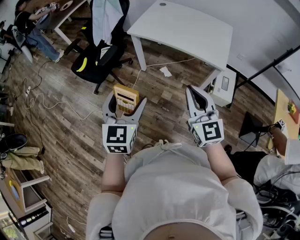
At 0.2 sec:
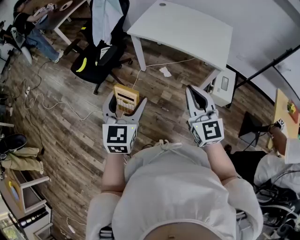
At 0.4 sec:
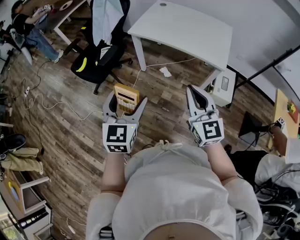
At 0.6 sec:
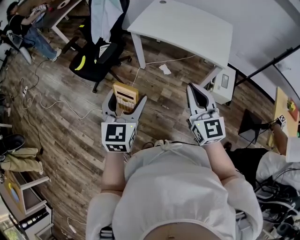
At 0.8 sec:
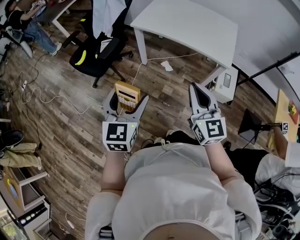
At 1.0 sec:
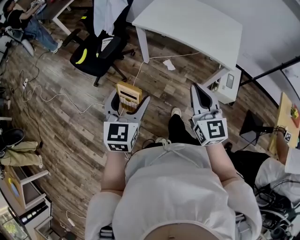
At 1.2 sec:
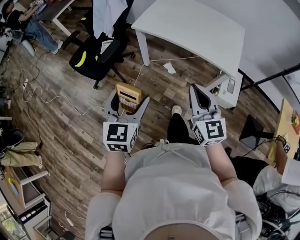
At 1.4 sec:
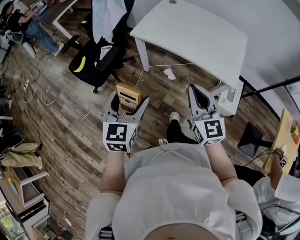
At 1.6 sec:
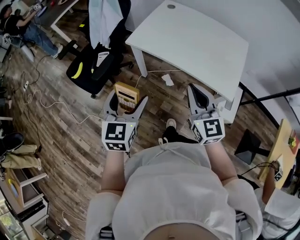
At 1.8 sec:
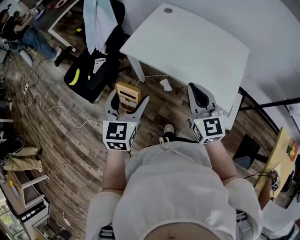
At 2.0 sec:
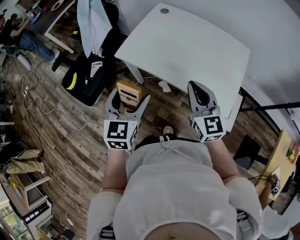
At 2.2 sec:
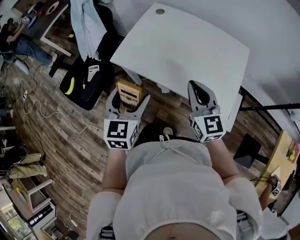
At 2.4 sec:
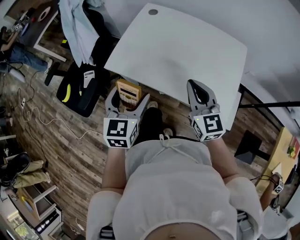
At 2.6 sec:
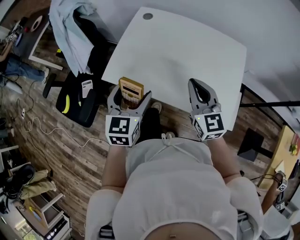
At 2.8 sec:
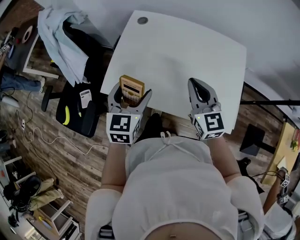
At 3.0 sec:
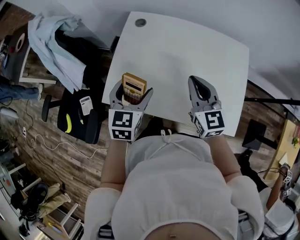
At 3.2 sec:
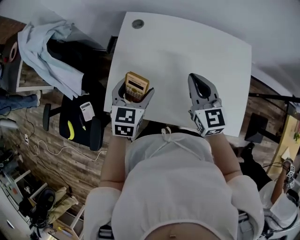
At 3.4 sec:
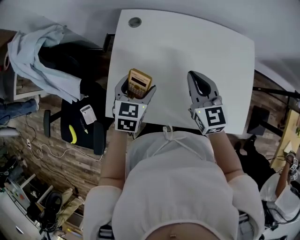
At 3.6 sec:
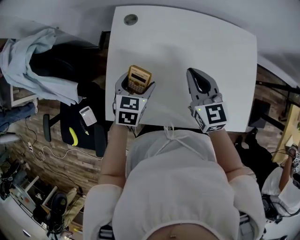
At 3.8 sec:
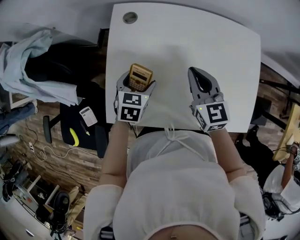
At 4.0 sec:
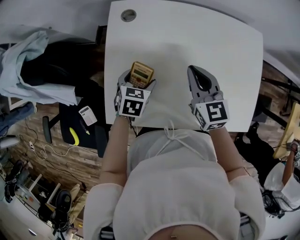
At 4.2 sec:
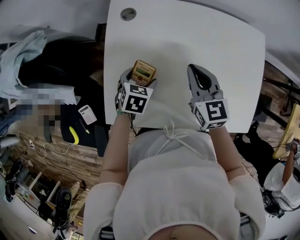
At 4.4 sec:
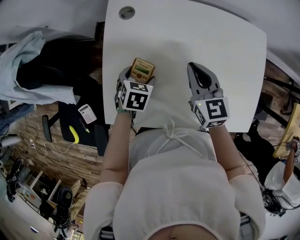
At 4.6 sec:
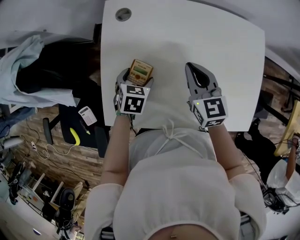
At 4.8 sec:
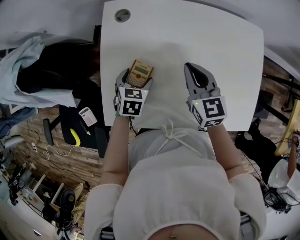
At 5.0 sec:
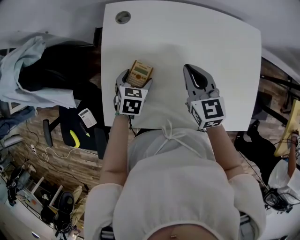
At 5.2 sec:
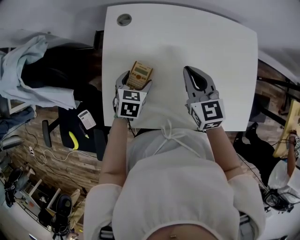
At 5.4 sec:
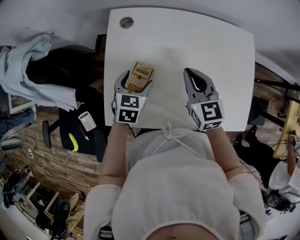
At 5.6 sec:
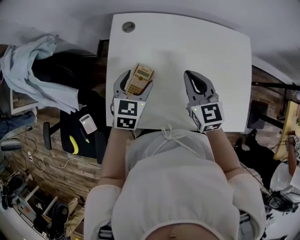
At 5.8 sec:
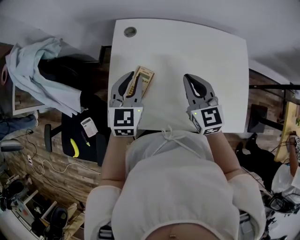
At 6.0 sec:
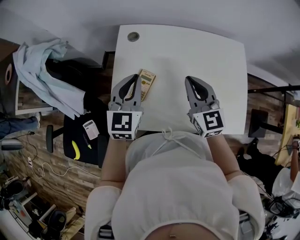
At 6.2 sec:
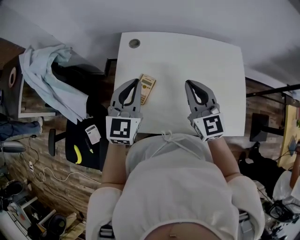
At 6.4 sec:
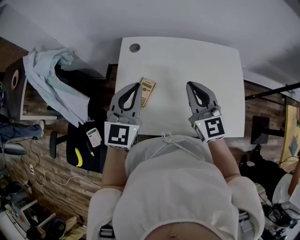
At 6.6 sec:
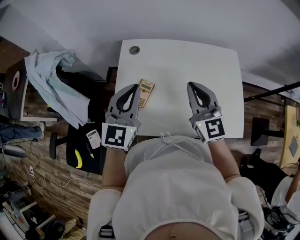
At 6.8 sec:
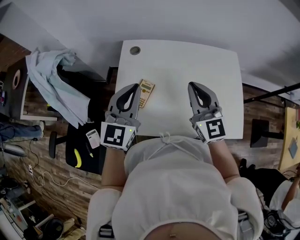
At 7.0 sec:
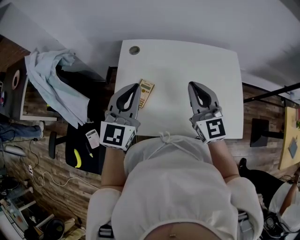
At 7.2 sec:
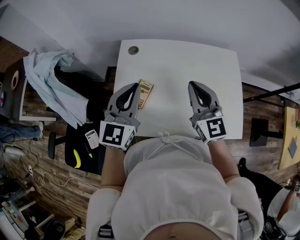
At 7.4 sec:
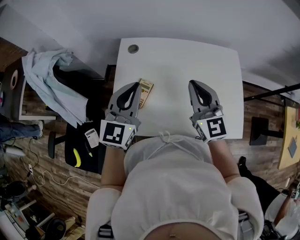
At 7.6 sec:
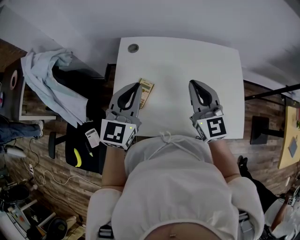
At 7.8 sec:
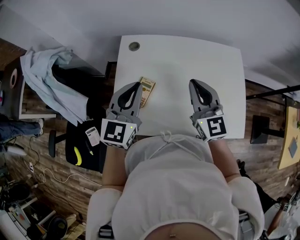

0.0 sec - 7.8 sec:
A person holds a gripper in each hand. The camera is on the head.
0.0 sec - 1.6 sec: Both grippers travel together forward, some 25 cm.
1.6 sec - 3.2 sec: Both grippers are carried forward, about 50 cm. The right gripper swivels approximately 20 degrees, while the left gripper changes its angle by approximately 30 degrees.
3.2 sec - 4.6 sec: Both grippers move downward and forward, some 15 cm. The left gripper swivels some 30 degrees.
4.6 sec - 6.2 sec: The right gripper moves upward and backward, roughly 15 cm, and changes its angle by about 20 degrees. Meanwhile the left gripper goes approximately 30 cm upward, tips its fingers upward by about 50 degrees, and closes its fingers.
6.2 sec - 7.8 sec: The grippers stay close to where they were, moving slightly.

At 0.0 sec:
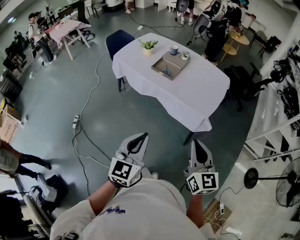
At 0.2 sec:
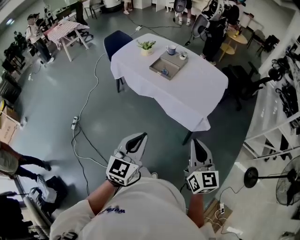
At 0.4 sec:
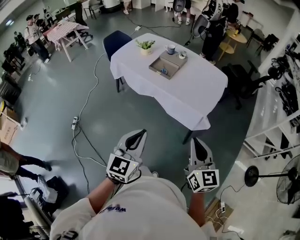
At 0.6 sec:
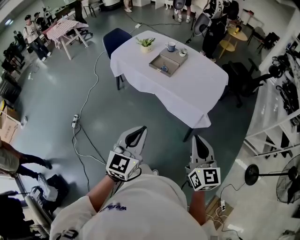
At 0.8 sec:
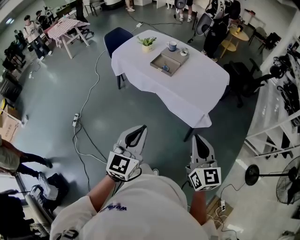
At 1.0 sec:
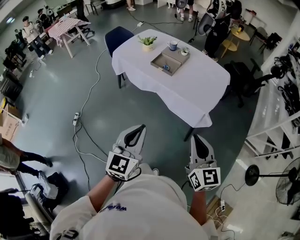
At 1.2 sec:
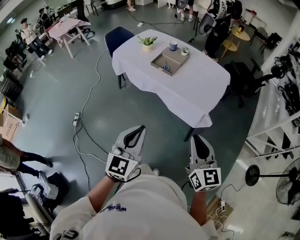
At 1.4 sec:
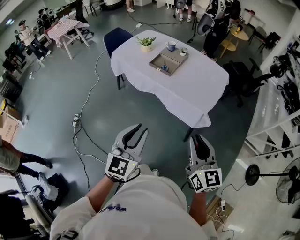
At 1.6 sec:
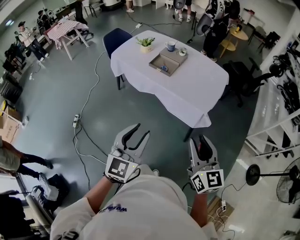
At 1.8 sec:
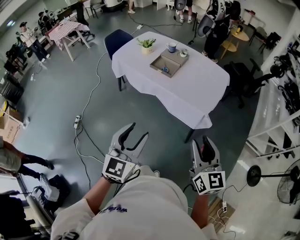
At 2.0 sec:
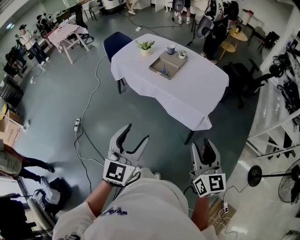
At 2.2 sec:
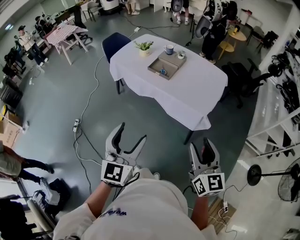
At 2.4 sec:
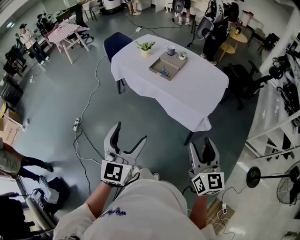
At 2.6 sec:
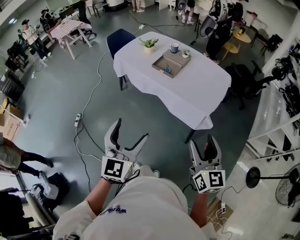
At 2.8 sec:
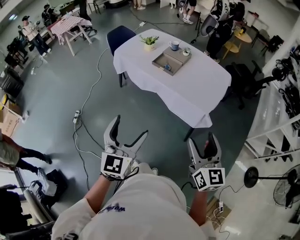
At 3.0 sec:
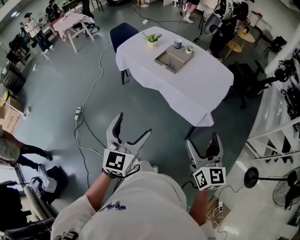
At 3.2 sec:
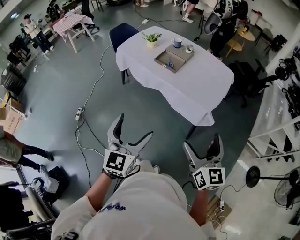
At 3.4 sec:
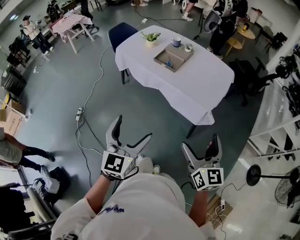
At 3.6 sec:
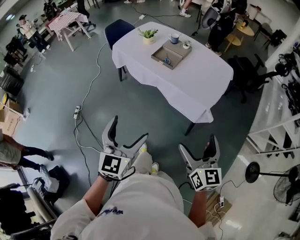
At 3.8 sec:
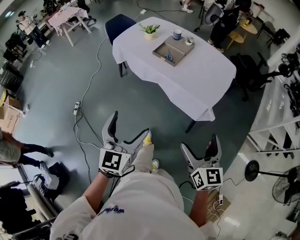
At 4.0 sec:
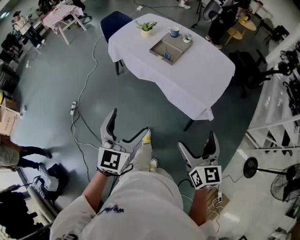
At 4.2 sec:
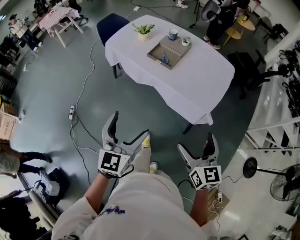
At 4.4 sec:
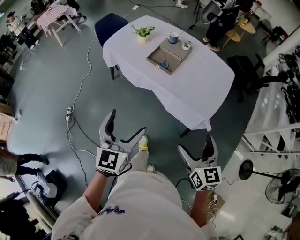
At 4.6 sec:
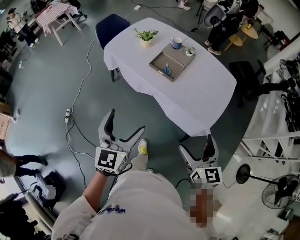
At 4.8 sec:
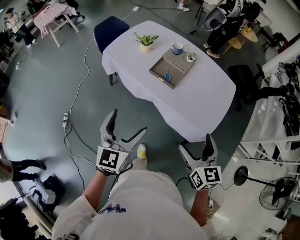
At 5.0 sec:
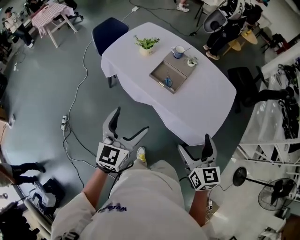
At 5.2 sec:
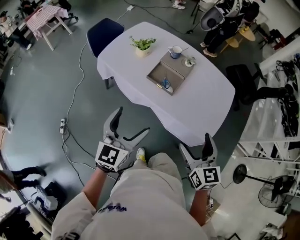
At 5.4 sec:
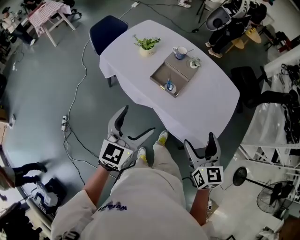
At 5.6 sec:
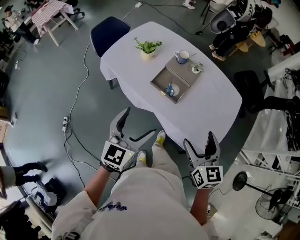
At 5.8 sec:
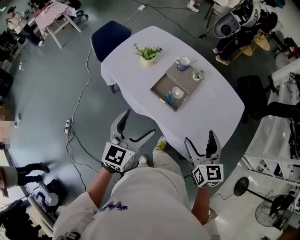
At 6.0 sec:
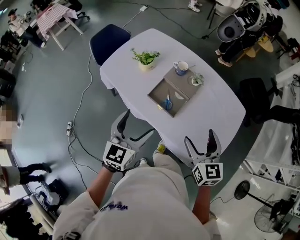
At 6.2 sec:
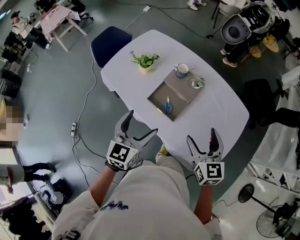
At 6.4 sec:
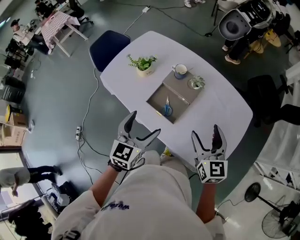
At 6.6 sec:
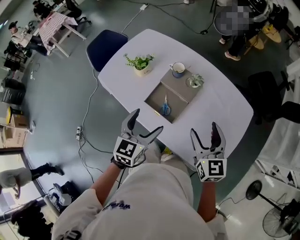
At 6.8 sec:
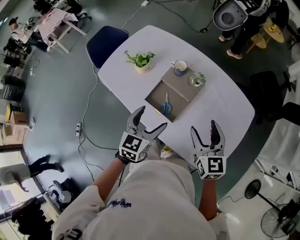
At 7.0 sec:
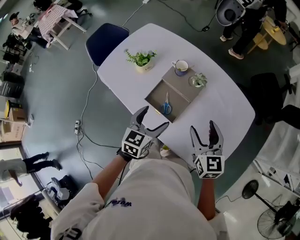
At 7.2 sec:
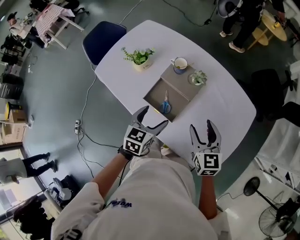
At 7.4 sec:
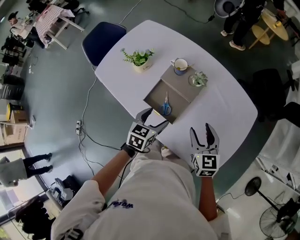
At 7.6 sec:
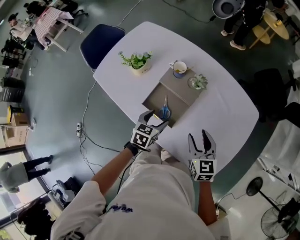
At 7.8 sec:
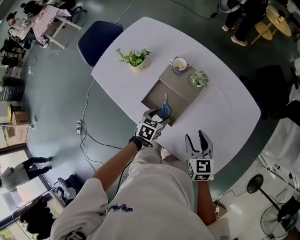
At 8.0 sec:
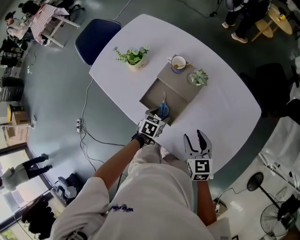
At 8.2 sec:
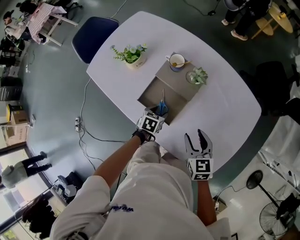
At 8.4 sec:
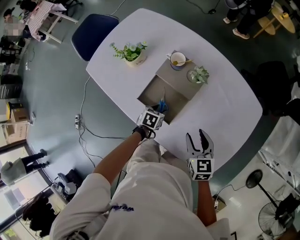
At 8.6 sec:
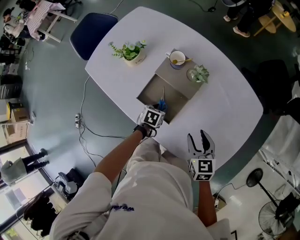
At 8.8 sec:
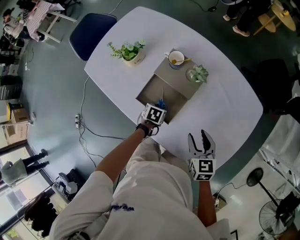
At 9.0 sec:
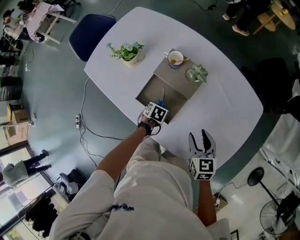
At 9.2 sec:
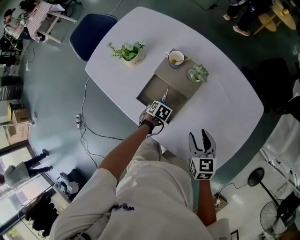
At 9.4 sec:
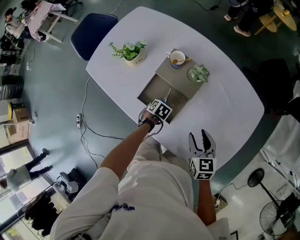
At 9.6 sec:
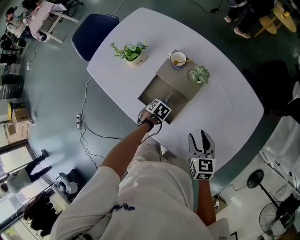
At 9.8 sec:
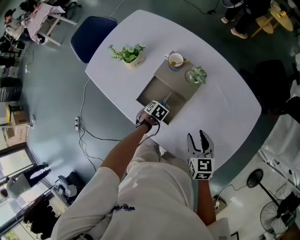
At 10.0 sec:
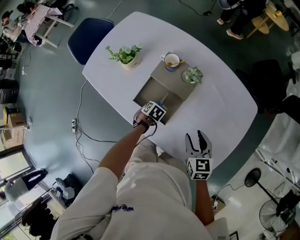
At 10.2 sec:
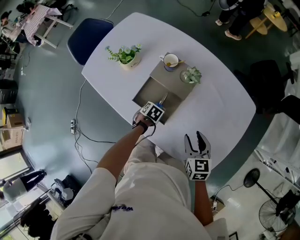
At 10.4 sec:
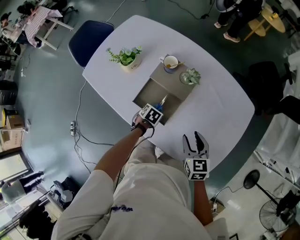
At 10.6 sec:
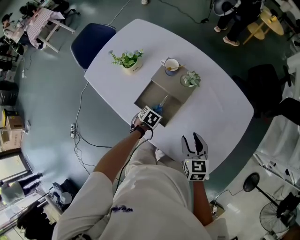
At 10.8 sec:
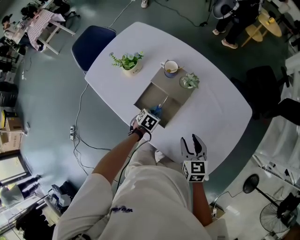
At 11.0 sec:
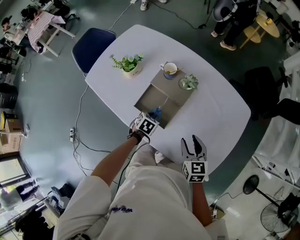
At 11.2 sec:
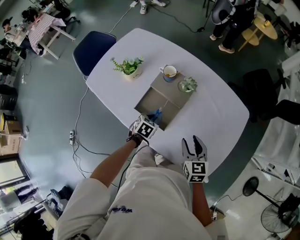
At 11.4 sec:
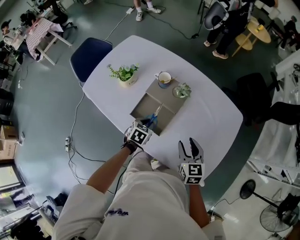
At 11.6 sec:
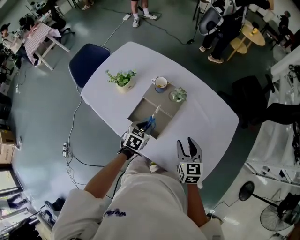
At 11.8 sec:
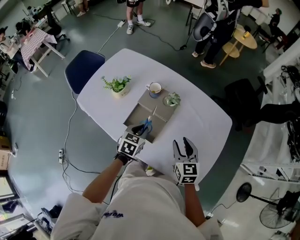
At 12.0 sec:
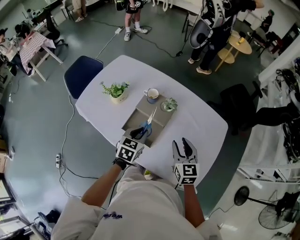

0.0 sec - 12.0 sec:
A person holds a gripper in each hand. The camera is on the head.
0.0 sec - 1.6 sec: The grippers make only small movements.
1.6 sec - 3.0 sec: The left gripper opens. Meanwhile the right gripper opens.
3.0 sec - 4.4 sec: The two grippers go approximately 15 cm forward.
4.4 sec - 6.0 sec: The grippers both shift forward by approximately 35 cm.
6.0 sec - 7.6 sec: The left gripper heads downward, forward and to the right, covering roughly 30 cm, and tips its fingers downward by some 30 degrees, while the right gripper goes about 15 cm downward and forward.
7.6 sec - 9.0 sec: The left gripper shifts roughly 15 cm downward, points its fingers about 30 degrees further downward, and closes its fingers; the right gripper goes about 5 cm downward.
9.0 sec - 10.4 sec: There are only small adjustments of the grippers.
10.4 sec - 12.0 sec: The right gripper moves upward, approximately 10 cm. The left gripper shifts approximately 25 cm upward, and points its fingers approximately 40 degrees further upward.

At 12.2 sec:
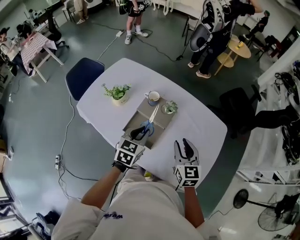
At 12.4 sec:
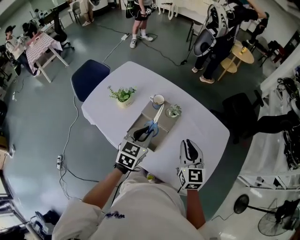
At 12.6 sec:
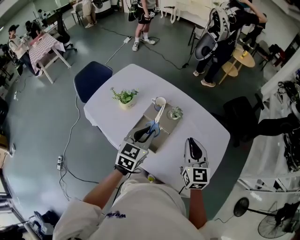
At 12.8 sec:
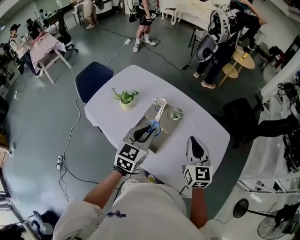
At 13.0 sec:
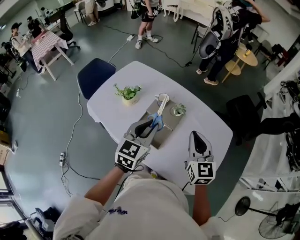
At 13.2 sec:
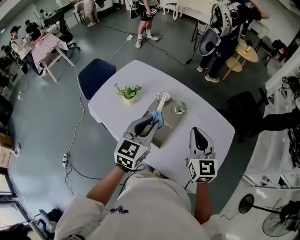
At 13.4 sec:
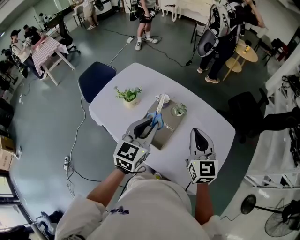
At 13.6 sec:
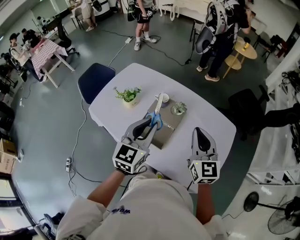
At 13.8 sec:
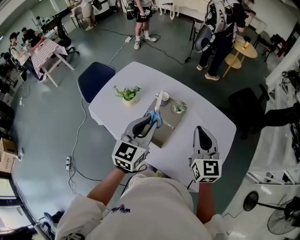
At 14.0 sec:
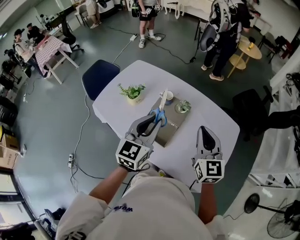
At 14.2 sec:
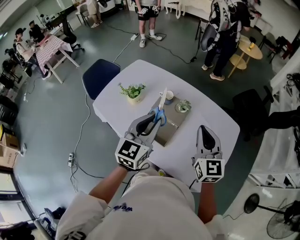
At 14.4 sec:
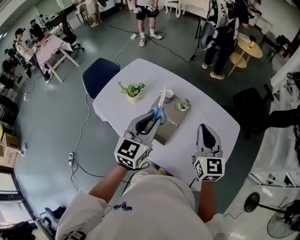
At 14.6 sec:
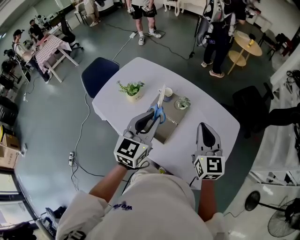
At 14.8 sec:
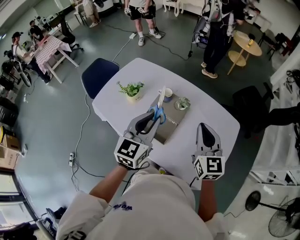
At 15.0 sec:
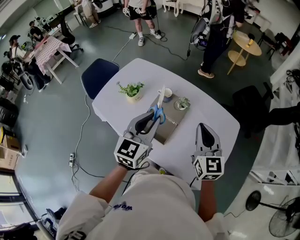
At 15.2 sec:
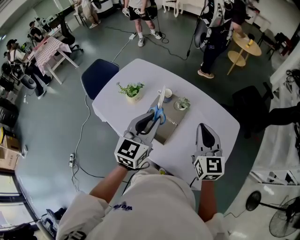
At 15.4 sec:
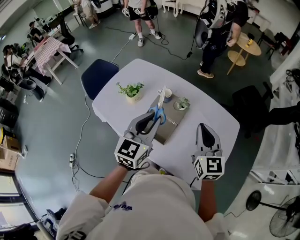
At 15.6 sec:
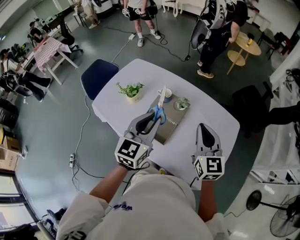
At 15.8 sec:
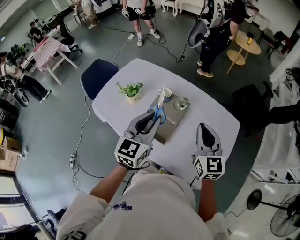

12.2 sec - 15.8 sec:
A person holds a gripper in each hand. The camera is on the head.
12.2 sec - 14.0 sec: Both grippers move upward, approximately 10 cm. The left gripper swivels some 20 degrees.
14.0 sec - 15.8 sec: Neither gripper changes place.
